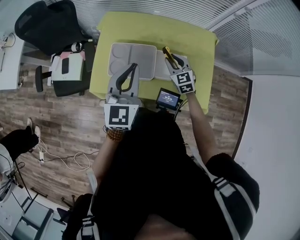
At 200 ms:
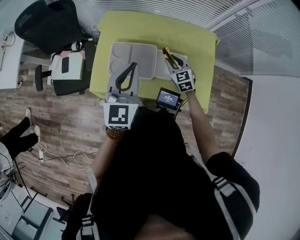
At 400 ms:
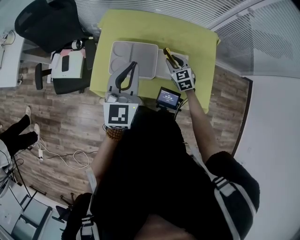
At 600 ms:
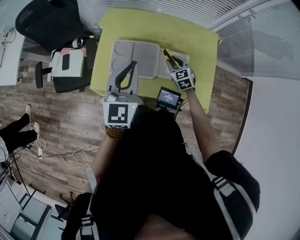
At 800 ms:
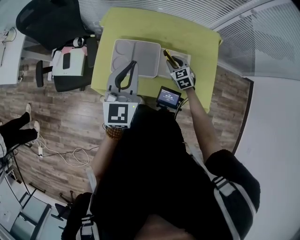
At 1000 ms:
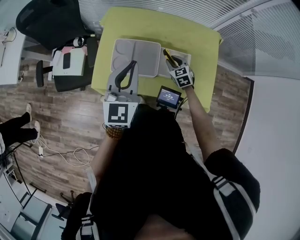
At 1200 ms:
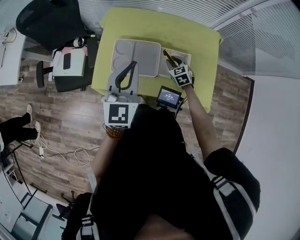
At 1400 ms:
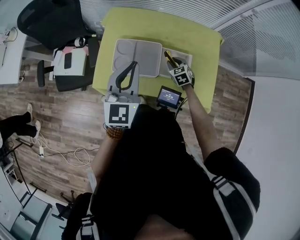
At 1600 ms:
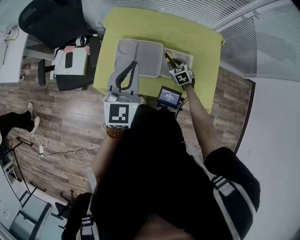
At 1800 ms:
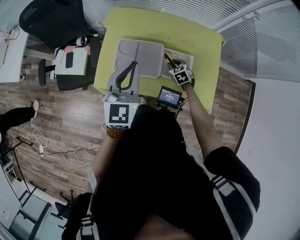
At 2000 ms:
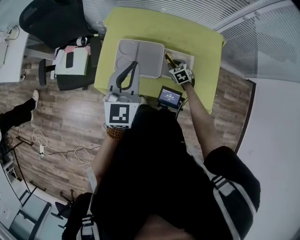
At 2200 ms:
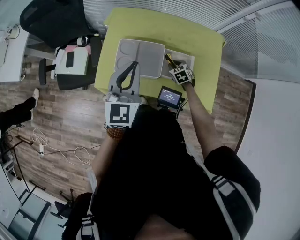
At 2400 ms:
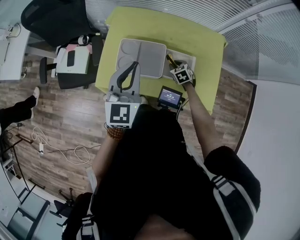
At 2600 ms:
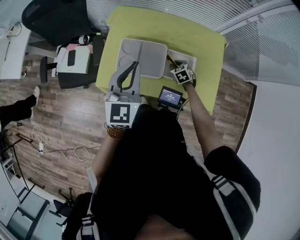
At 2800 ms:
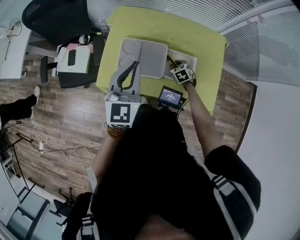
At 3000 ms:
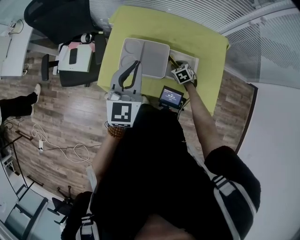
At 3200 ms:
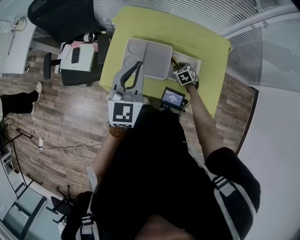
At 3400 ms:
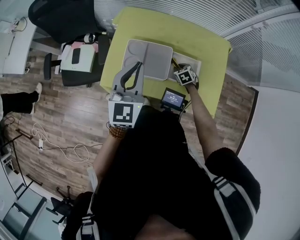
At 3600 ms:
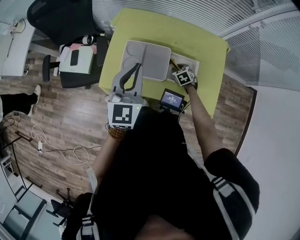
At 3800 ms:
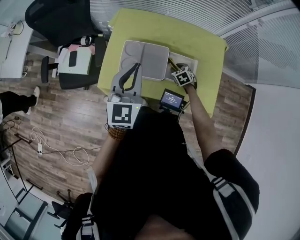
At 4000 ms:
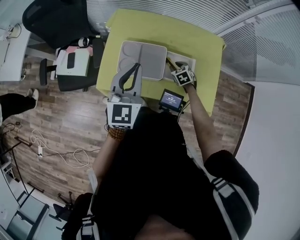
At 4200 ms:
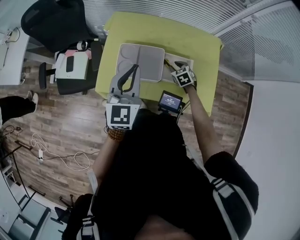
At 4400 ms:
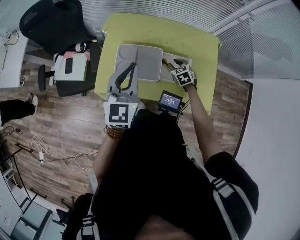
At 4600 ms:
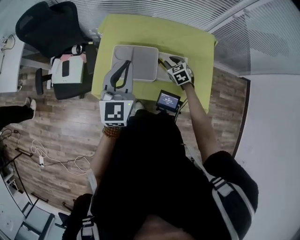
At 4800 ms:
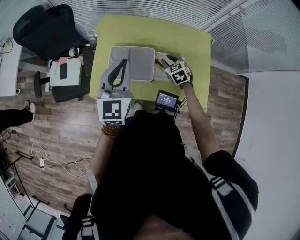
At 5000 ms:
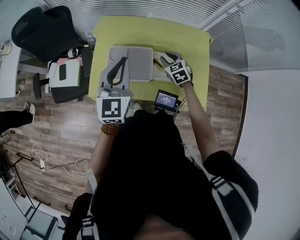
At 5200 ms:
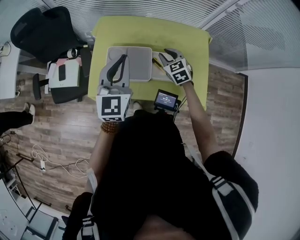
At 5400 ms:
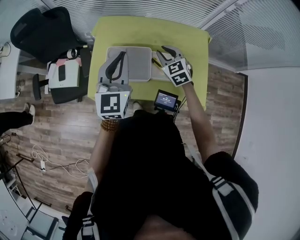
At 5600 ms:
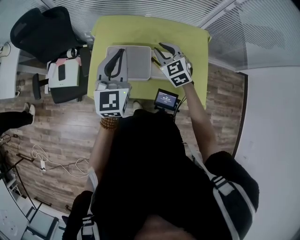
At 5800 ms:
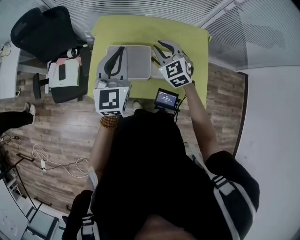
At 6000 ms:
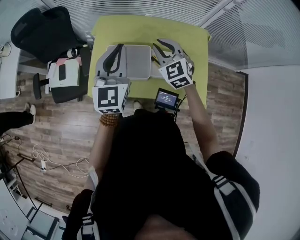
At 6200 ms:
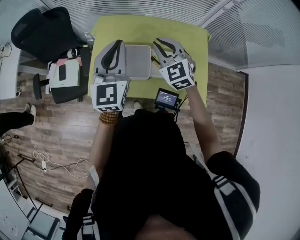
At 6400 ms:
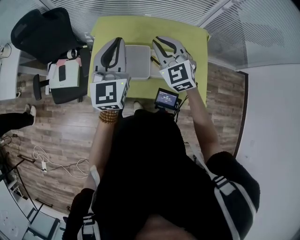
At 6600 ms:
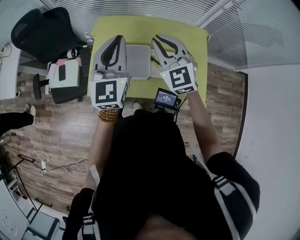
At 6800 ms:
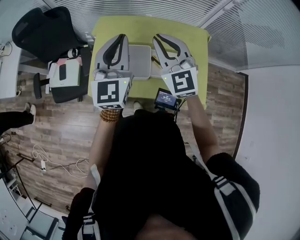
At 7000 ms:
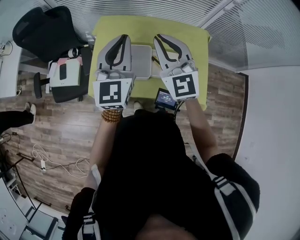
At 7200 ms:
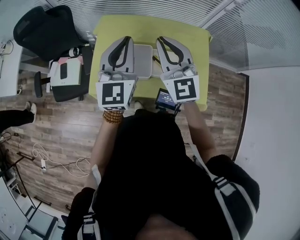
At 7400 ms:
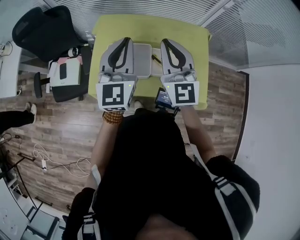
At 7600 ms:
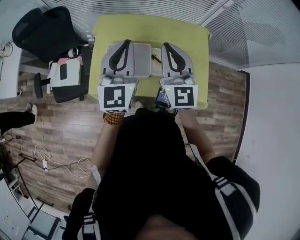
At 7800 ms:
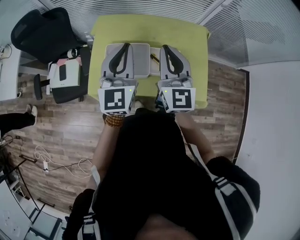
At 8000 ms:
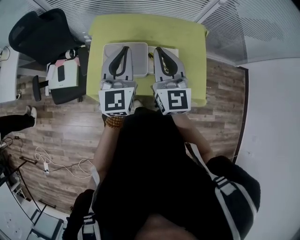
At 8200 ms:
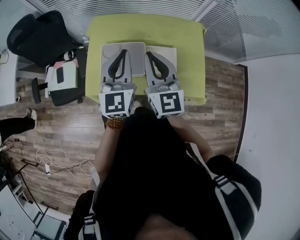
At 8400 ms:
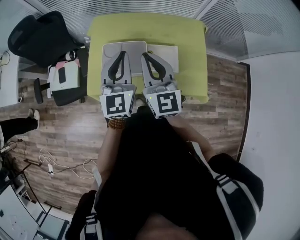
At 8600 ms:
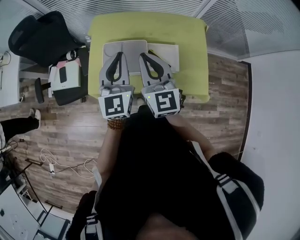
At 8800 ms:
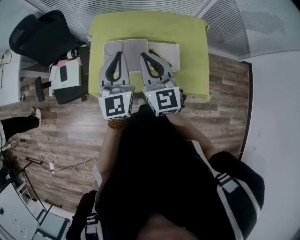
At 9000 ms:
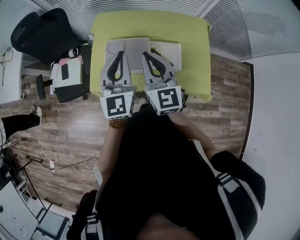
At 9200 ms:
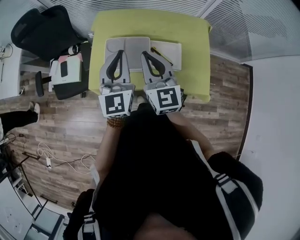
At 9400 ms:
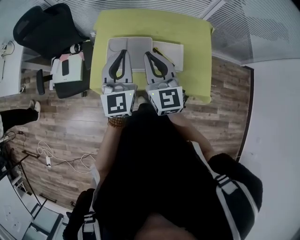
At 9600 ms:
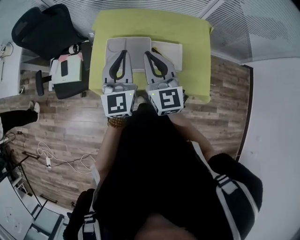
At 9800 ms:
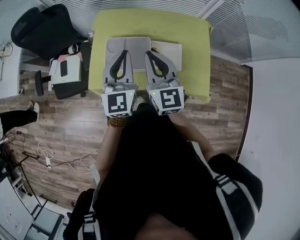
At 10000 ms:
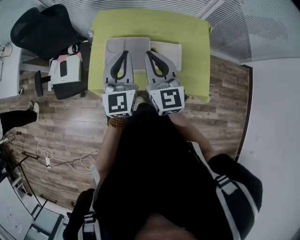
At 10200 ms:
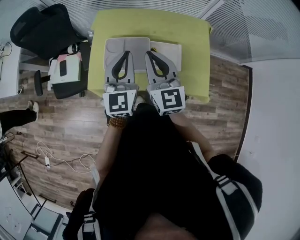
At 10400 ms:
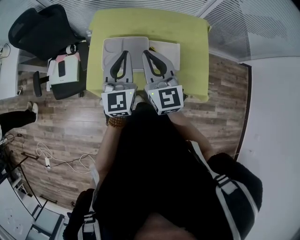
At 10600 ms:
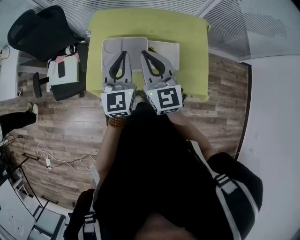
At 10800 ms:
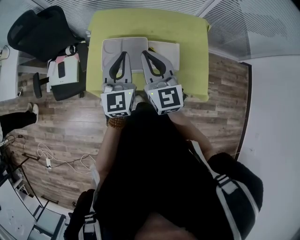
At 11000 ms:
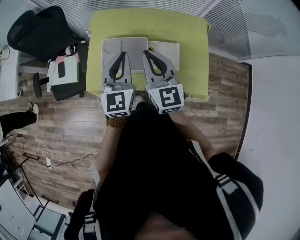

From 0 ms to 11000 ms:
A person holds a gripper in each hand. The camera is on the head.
From 0 ms to 1600 ms: The right gripper moves downward, some 15 cm, and rotates about 20 degrees.
From 1600 ms to 3200 ms: There are only small adjustments of the grippers.
From 3200 ms to 4800 ms: The right gripper shifts about 10 cm upward.
From 4800 ms to 6200 ms: The right gripper shifts roughly 20 cm upward, and changes its angle by some 30 degrees. The left gripper ends up about 5 cm from where it was.
From 6200 ms to 7800 ms: The right gripper goes some 10 cm upward and backward, and rotates some 40 degrees.
From 7800 ms to 9400 ms: The right gripper is displaced downward and to the left by about 5 cm. Meanwhile the left gripper changes place by some 5 cm.
From 9400 ms to 11000 ms: The grippers stay close to where they were, moving slightly.

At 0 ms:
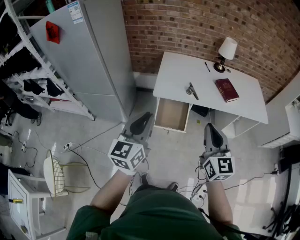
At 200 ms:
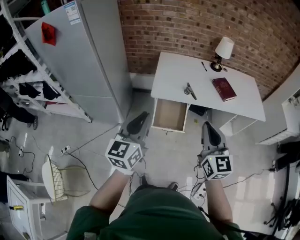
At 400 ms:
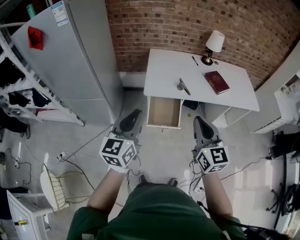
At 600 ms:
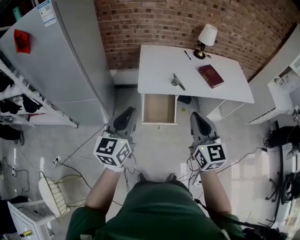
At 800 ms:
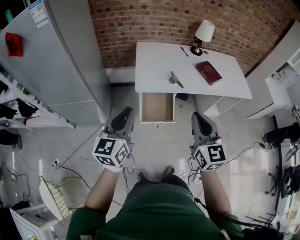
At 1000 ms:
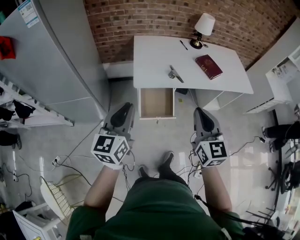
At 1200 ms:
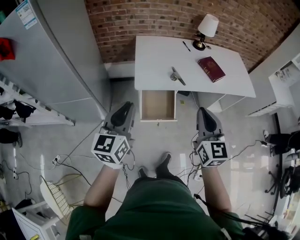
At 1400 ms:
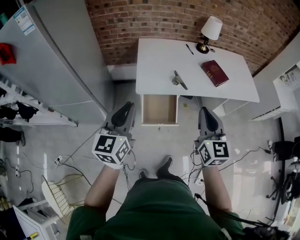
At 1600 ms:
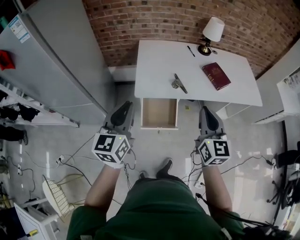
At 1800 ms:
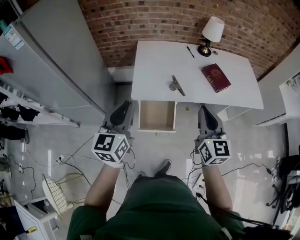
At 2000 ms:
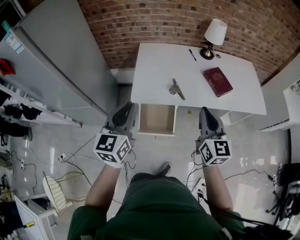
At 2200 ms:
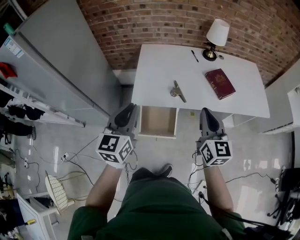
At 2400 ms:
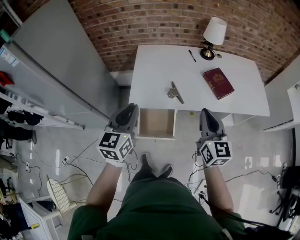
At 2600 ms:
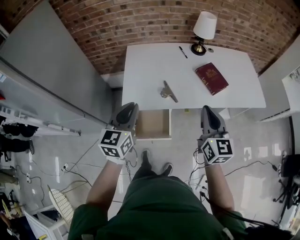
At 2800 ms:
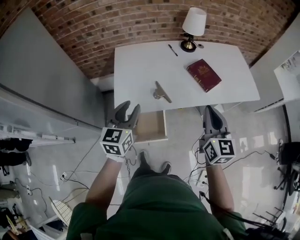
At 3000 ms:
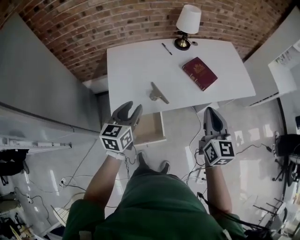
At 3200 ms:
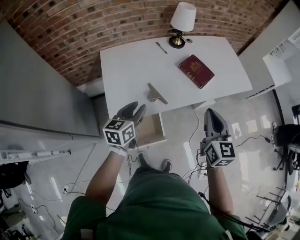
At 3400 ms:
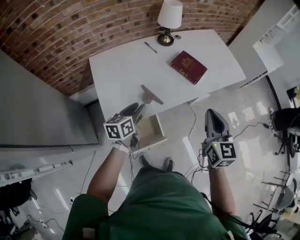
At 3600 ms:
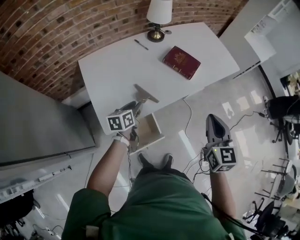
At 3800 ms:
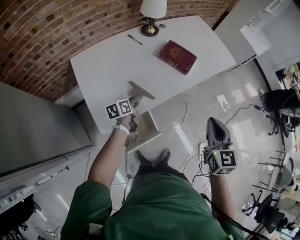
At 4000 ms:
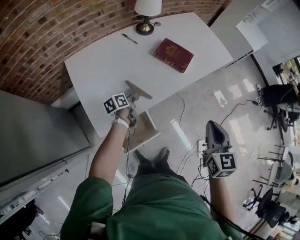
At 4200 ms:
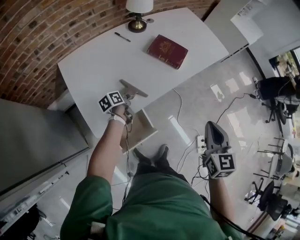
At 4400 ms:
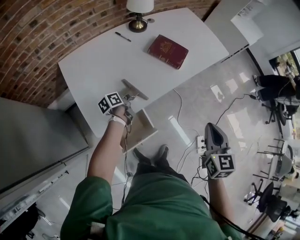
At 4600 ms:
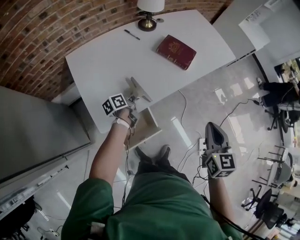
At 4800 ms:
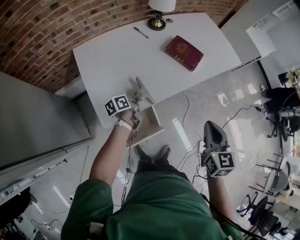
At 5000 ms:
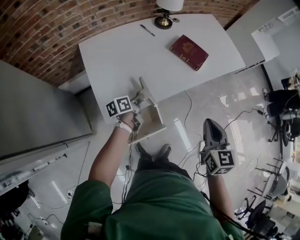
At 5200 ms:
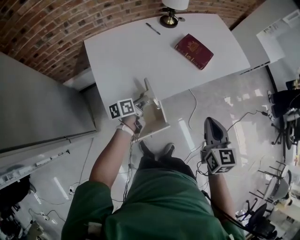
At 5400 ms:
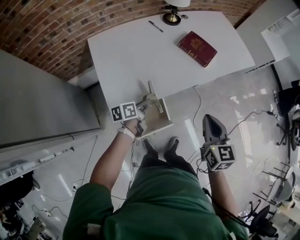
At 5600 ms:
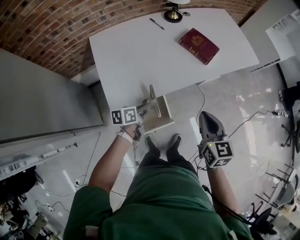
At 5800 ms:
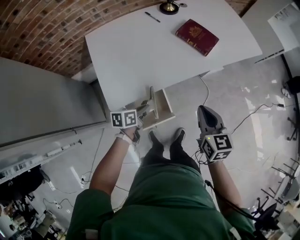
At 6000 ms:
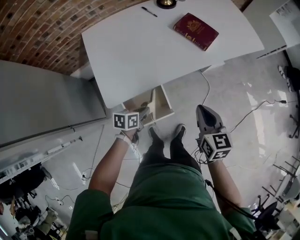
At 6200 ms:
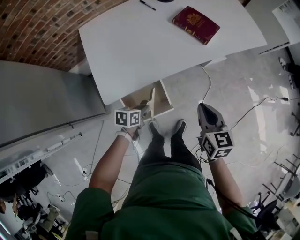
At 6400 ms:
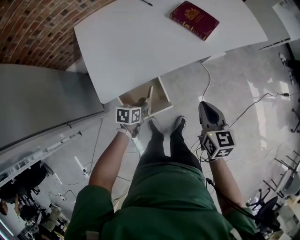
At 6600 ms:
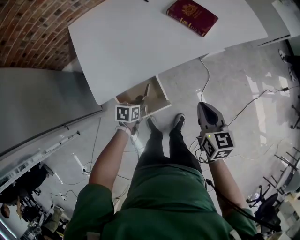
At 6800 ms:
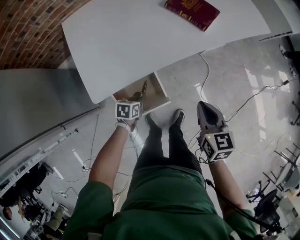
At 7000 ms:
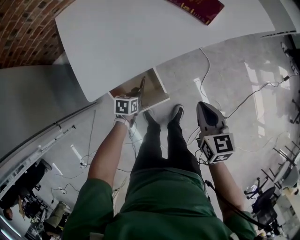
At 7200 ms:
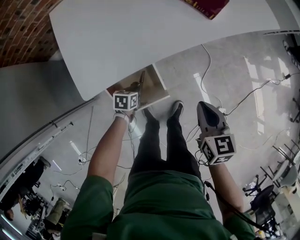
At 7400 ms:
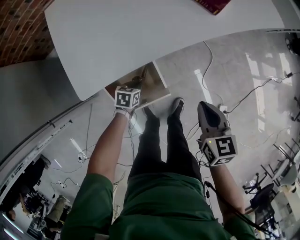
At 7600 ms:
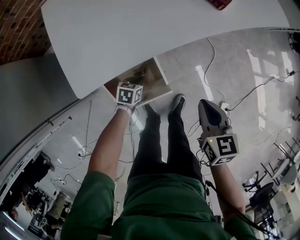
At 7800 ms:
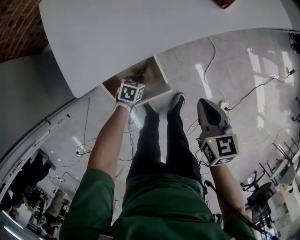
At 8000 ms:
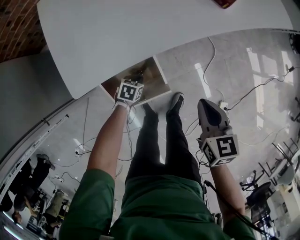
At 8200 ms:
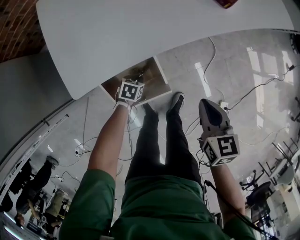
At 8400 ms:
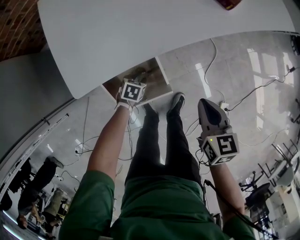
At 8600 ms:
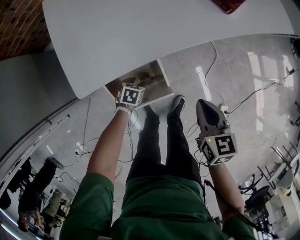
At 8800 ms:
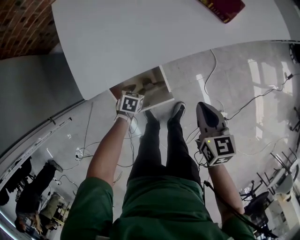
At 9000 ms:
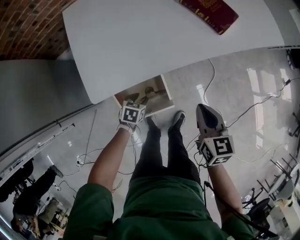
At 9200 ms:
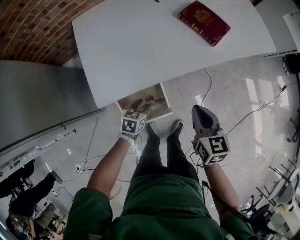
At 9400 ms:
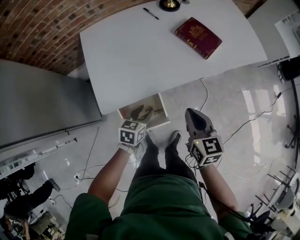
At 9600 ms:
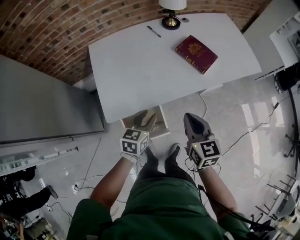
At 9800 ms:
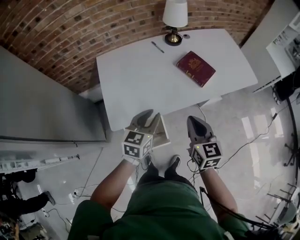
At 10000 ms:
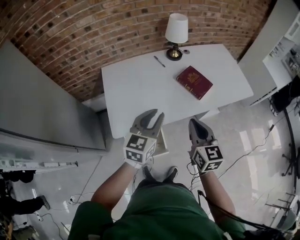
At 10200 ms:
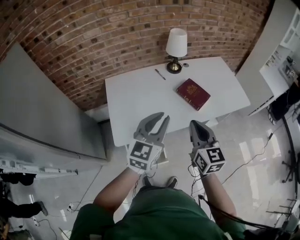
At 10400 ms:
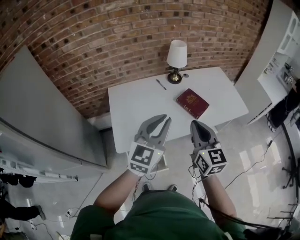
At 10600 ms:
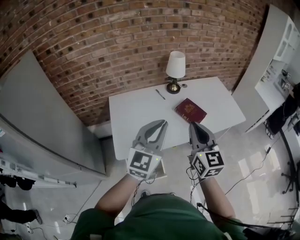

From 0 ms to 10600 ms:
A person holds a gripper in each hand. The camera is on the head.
From 0 ms to 1600 ms: The two grippers go about 15 cm forward.
From 1600 ms to 3000 ms: The left gripper moves forward, to the right and downward, roughly 25 cm, changes its angle by some 20 degrees, and opens its fingers. Meanwhile the right gripper is displaced forward and to the right by roughly 20 cm.
From 3000 ms to 4600 ms: The right gripper shifts by roughly 10 cm, and turns by roughly 30 degrees. The left gripper moves downward, approximately 25 cm, twists roughly 50 degrees counterclockwise, seen from behind, and closes up.
From 4600 ms to 6000 ms: The left gripper shifts roughly 20 cm backward, and changes its angle by some 30 degrees; the right gripper travels downward by about 10 cm, and swivels roughly 20 degrees.
From 6000 ms to 7600 ms: Both grippers move downward, about 20 cm. The left gripper turns by roughly 20 degrees.
From 7600 ms to 9000 ms: The right gripper changes place by roughly 5 cm. Meanwhile the left gripper moves upward, approximately 5 cm, and opens up.
From 9000 ms to 10600 ms: The right gripper goes about 40 cm upward, and points its fingers approximately 40 degrees further upward, while the left gripper travels upward by about 60 cm, tips its fingers upward by approximately 70 degrees, and closes.

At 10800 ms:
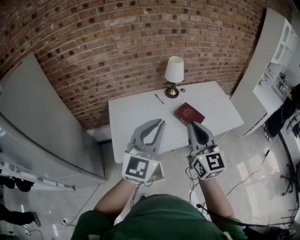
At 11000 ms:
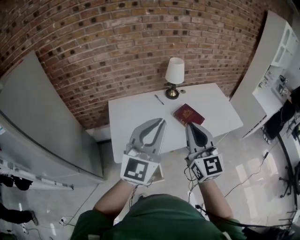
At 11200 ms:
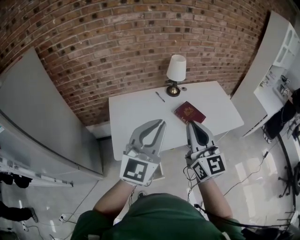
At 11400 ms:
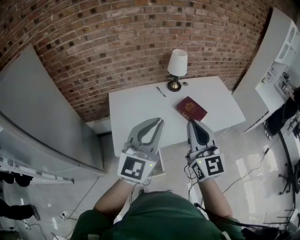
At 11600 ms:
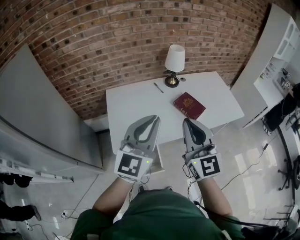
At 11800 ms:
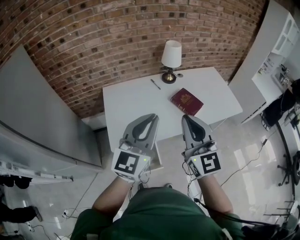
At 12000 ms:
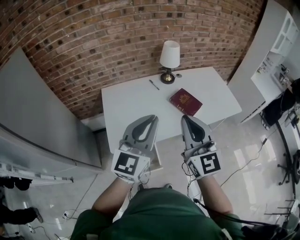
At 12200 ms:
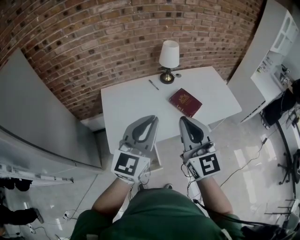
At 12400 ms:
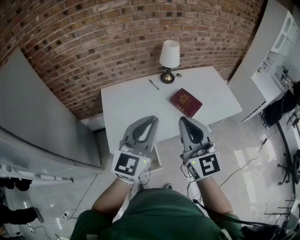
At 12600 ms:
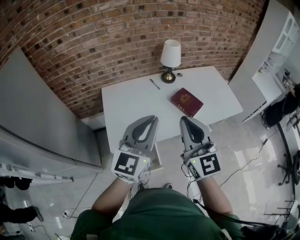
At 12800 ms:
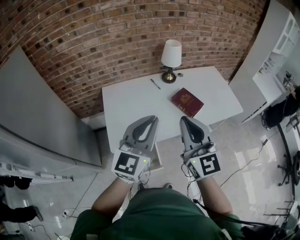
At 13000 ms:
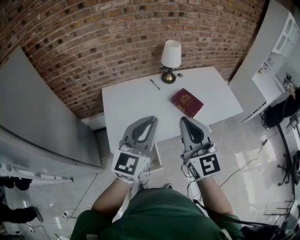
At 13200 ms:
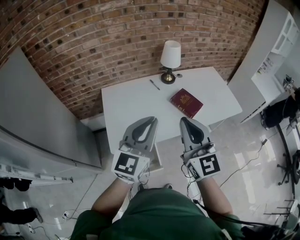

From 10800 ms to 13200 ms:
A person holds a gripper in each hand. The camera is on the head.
From 10800 ms to 13200 ms: The grippers stay close to where they were, moving slightly.
